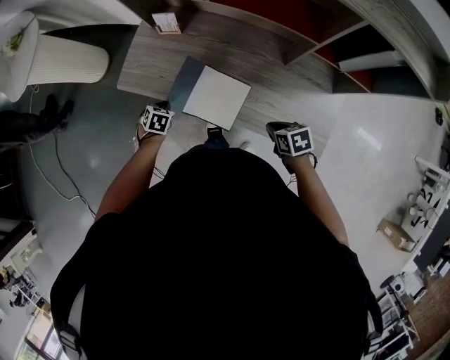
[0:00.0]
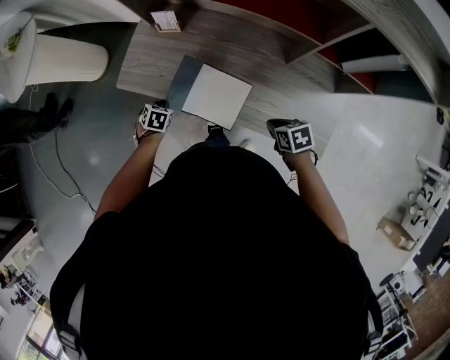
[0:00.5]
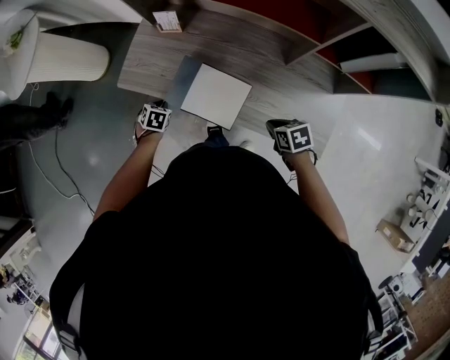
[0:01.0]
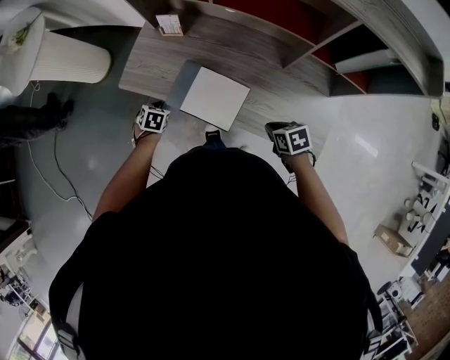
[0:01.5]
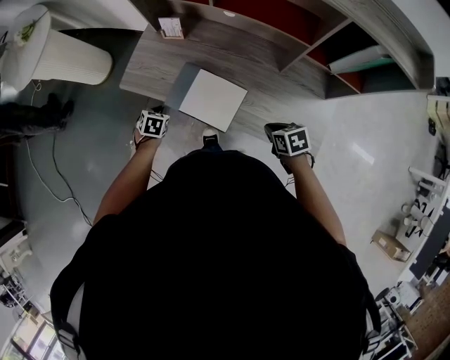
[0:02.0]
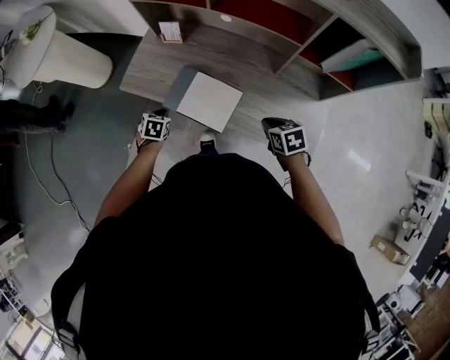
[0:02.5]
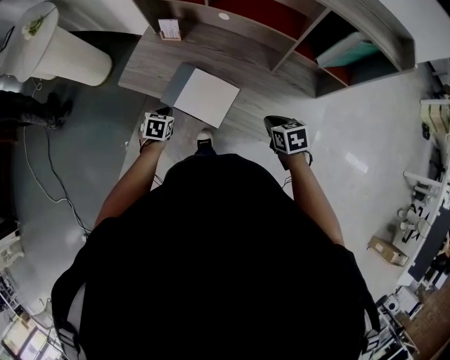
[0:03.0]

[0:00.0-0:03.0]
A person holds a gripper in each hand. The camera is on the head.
0:00.0 to 0:01.5: The grippers move only a little.
0:01.5 to 0:03.0: The right gripper heads upward, covering roughly 5 cm, while the left gripper shifts some 10 cm backward and upward.

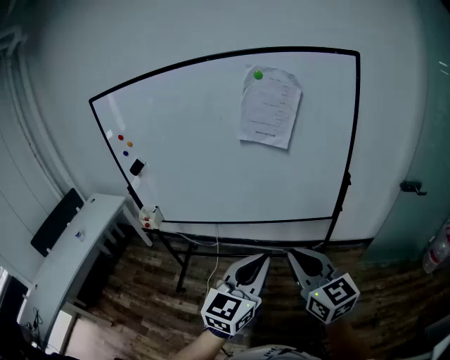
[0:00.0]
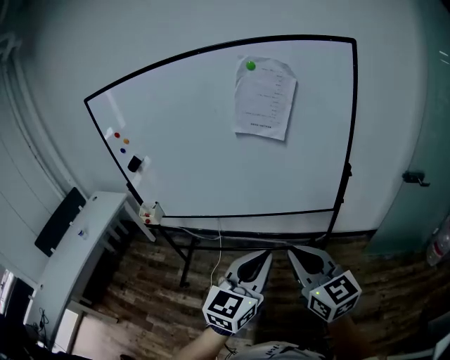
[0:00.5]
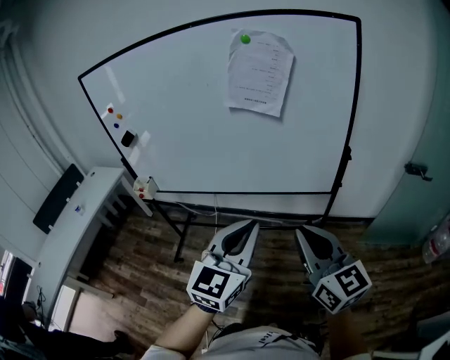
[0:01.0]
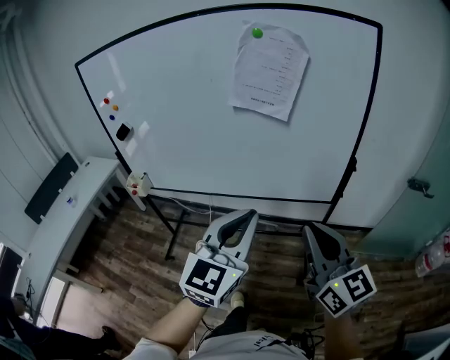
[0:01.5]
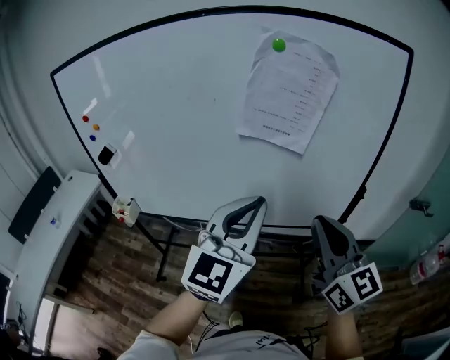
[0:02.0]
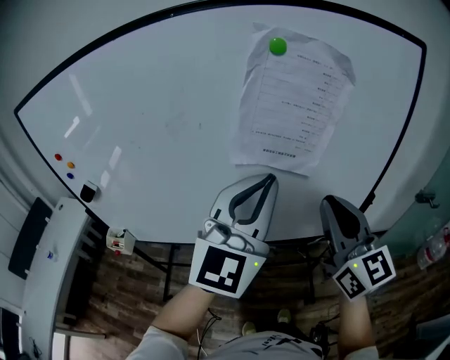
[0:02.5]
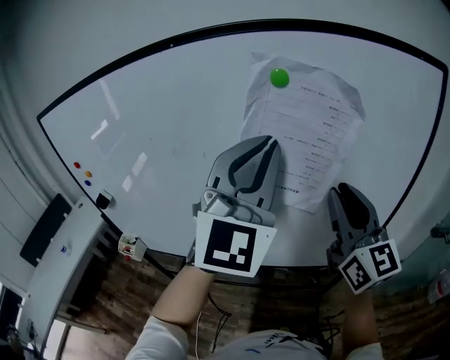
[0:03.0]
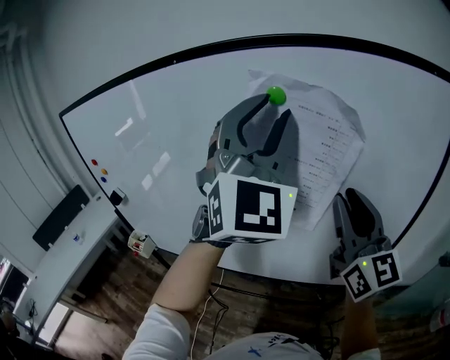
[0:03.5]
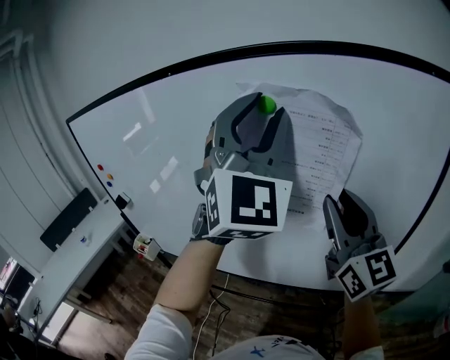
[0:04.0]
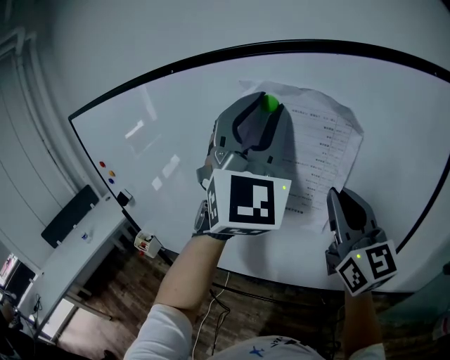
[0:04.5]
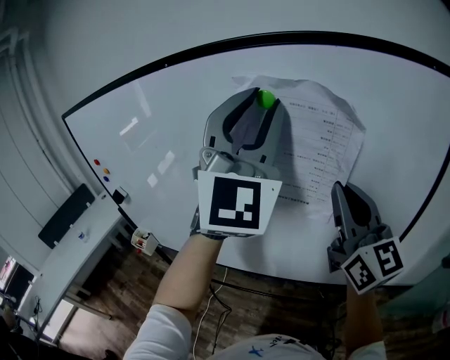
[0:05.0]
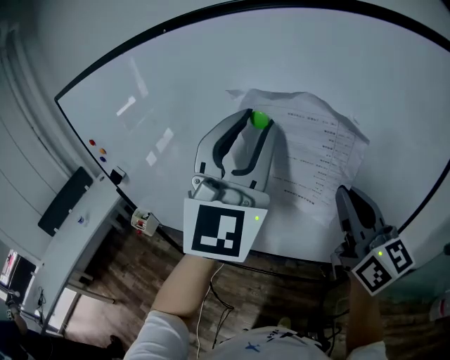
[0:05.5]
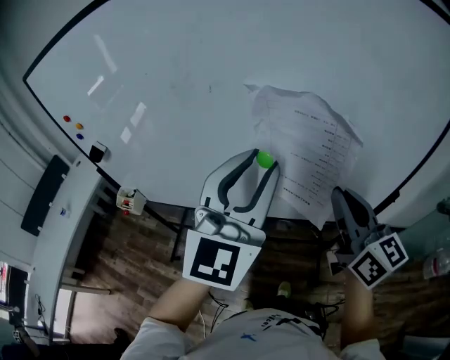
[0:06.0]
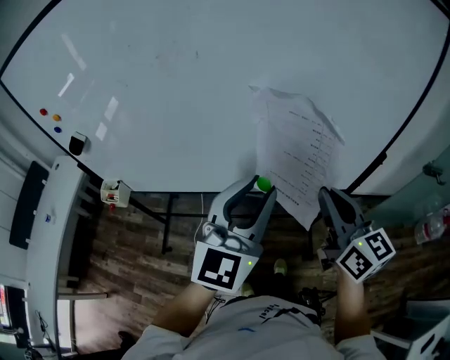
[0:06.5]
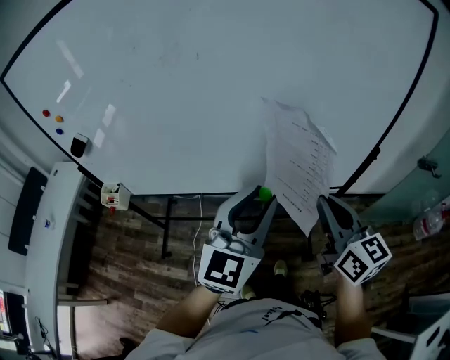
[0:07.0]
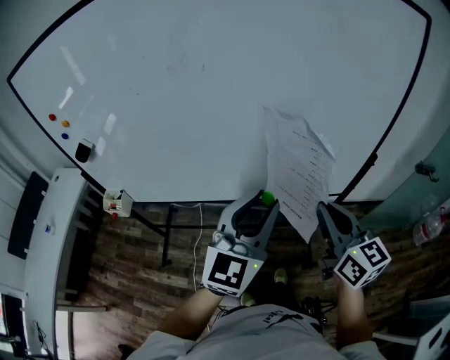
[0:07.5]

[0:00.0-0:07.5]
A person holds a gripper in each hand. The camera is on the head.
0:00.0 to 0:02.0: The left gripper is displaced forward and upward by approximately 25 cm, while the right gripper goes roughly 20 cm forward.
0:02.0 to 0:04.0: The left gripper moves forward and upward, about 30 cm, twists about 40 degrees clockwise, seen from behind, and opens its fingers; the right gripper is displaced forward by about 25 cm, and opens up.
0:04.0 to 0:05.5: The left gripper travels downward by some 5 cm. The right gripper closes its fingers.
0:05.5 to 0:07.5: The left gripper moves downward and backward, roughly 30 cm, and swivels some 40 degrees, while the right gripper travels backward and downward by approximately 20 cm, and rotates about 20 degrees.

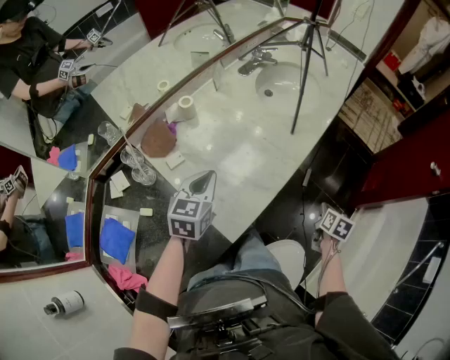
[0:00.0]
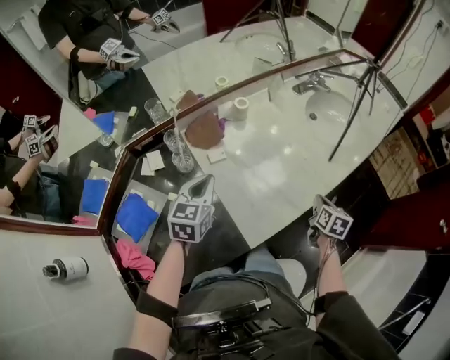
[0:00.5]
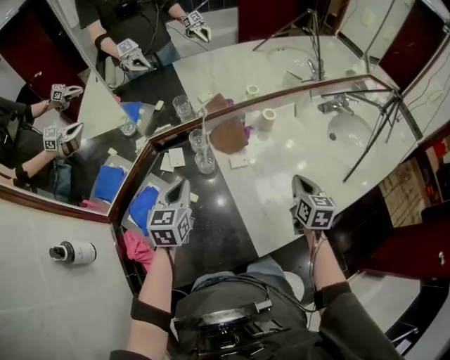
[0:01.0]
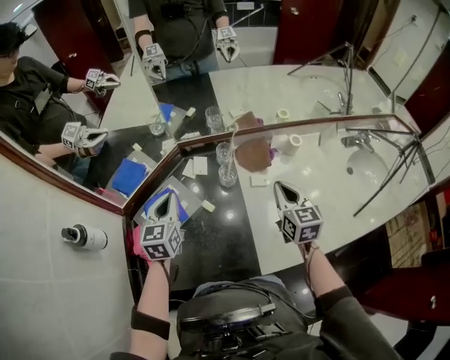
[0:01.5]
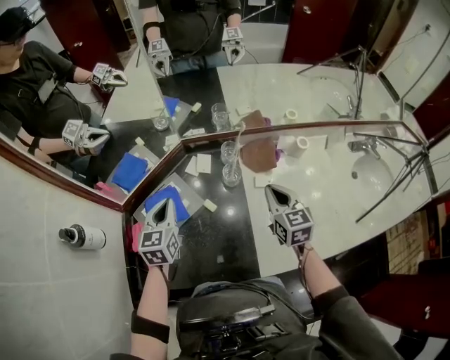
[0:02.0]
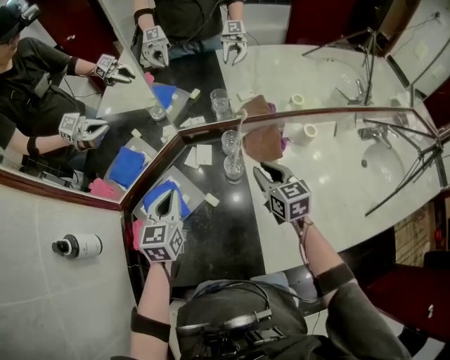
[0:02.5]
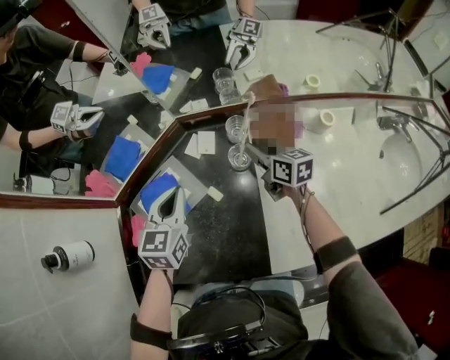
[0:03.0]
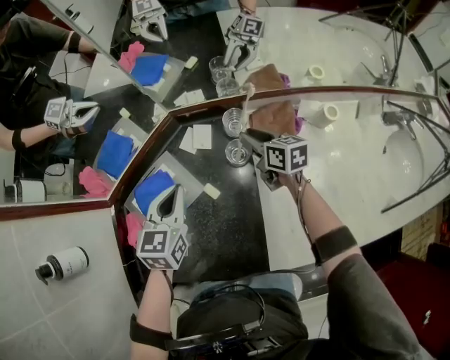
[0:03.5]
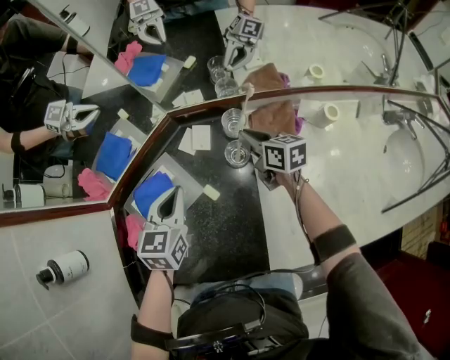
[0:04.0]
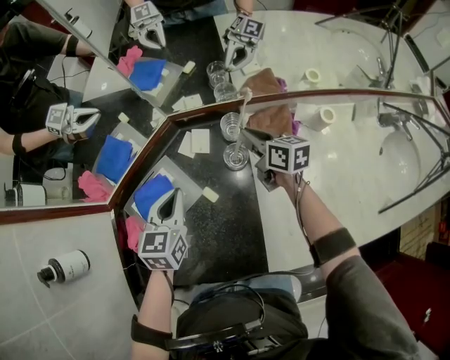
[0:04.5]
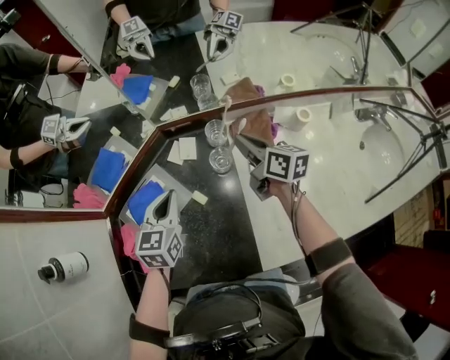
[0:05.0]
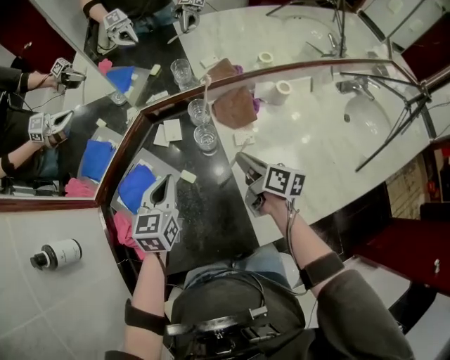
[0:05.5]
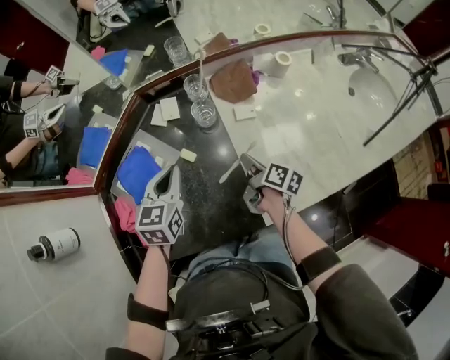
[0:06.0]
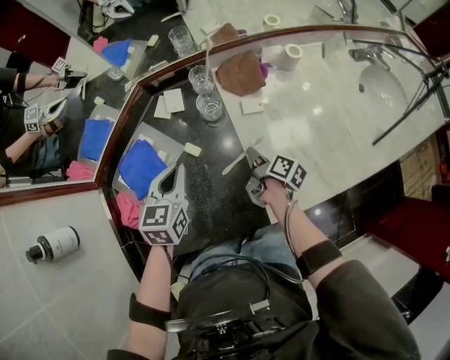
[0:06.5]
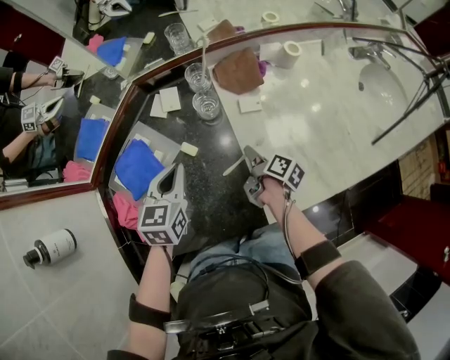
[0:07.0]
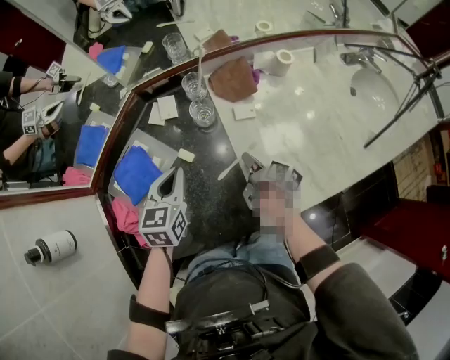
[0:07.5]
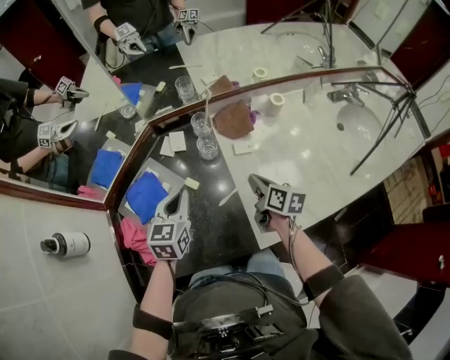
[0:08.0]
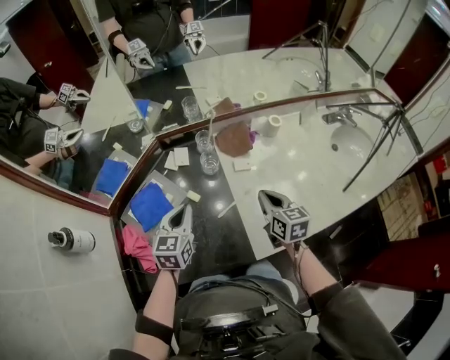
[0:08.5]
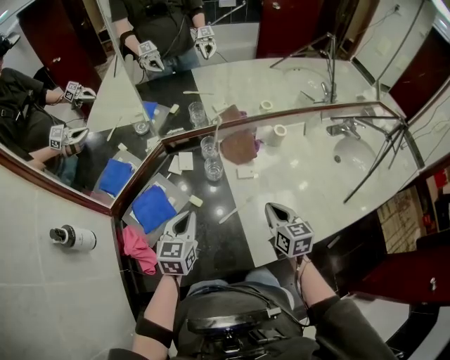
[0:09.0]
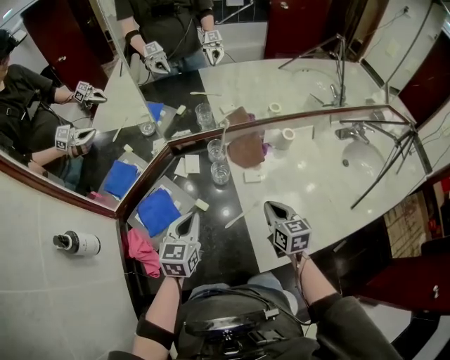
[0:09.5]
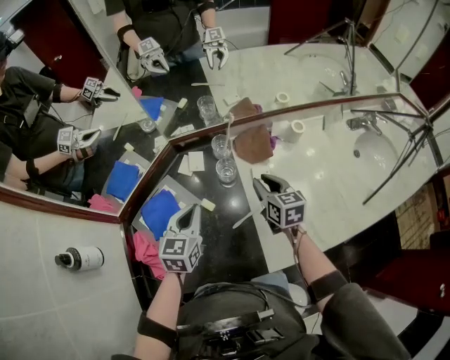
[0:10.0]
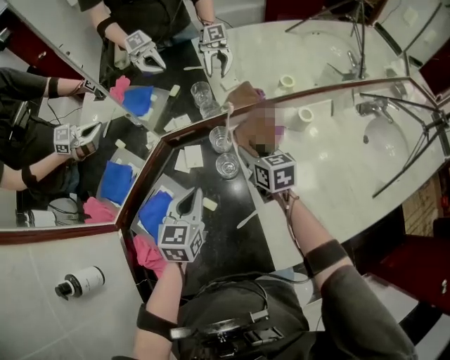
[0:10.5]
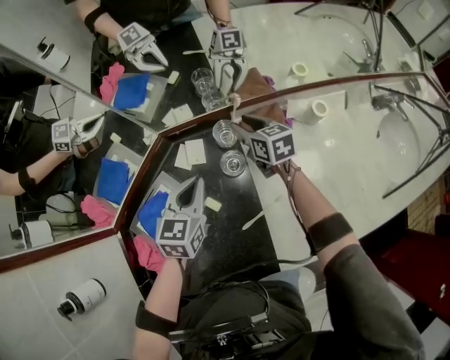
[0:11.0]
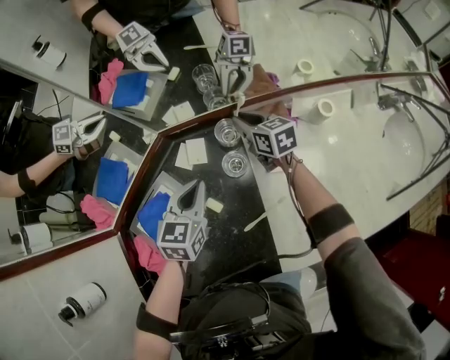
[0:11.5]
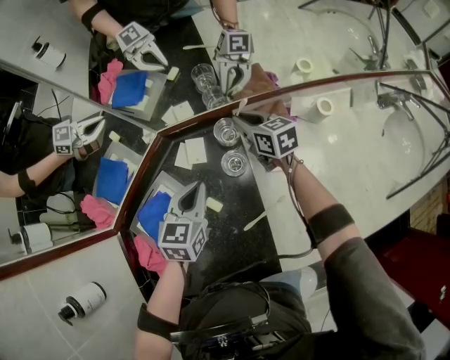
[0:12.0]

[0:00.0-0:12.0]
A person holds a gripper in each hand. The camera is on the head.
0:00.0 to 0:02.0: The left gripper changes place by about 40 cm, and swivels roughly 60 degrees. Meanwhile the right gripper ends up approximately 60 cm from where it was, and turns by approximately 80 degrees.
0:02.0 to 0:04.0: The right gripper travels forward and downward by roughly 25 cm, rotates roughly 30 degrees, and opens, then closes once more, while the left gripper goes some 10 cm to the right and downward.
0:04.0 to 0:06.0: The right gripper travels backward by roughly 25 cm, and rotates around the line of its fingers by approximately 40 degrees, clockwise from behind. Meanwhile the left gripper travels backward by about 10 cm.
0:06.0 to 0:08.0: The right gripper heads upward, covering about 10 cm, rotates about 20 degrees, and opens, then closes once more.
0:08.0 to 0:10.0: The right gripper travels forward by approximately 10 cm, rotates roughly 30 degrees, and opens.
0:10.0 to 0:12.0: The left gripper goes about 10 cm forward and downward; the right gripper shifts some 20 cm forward.

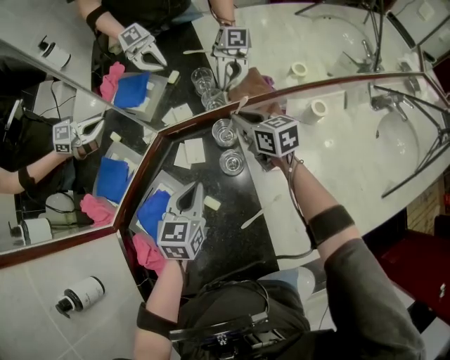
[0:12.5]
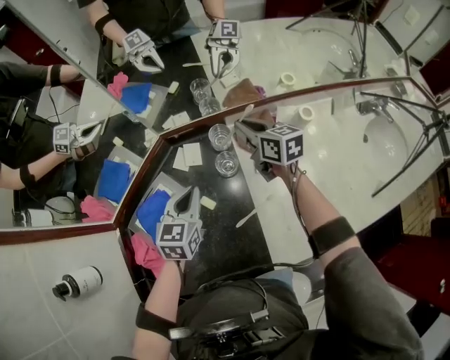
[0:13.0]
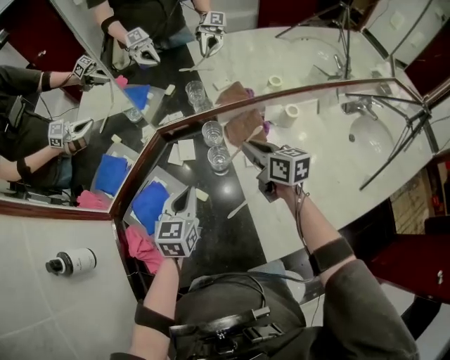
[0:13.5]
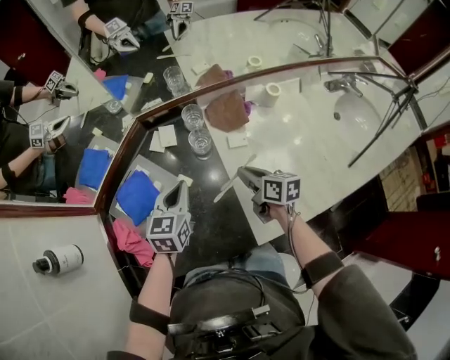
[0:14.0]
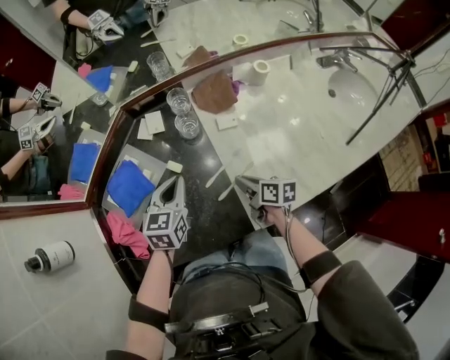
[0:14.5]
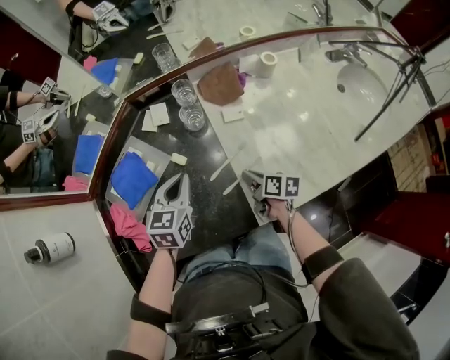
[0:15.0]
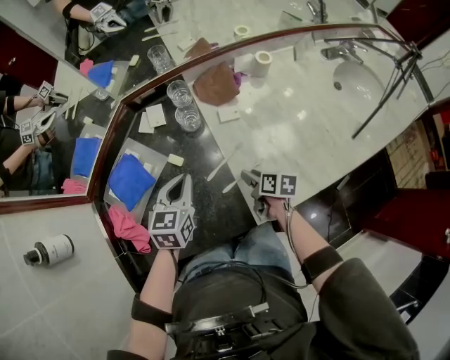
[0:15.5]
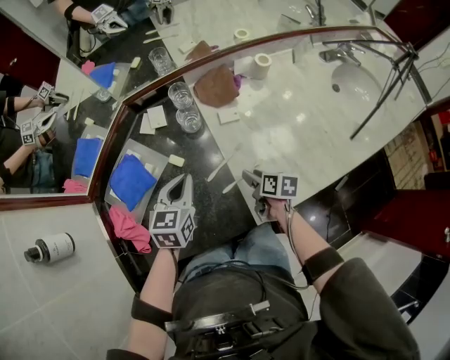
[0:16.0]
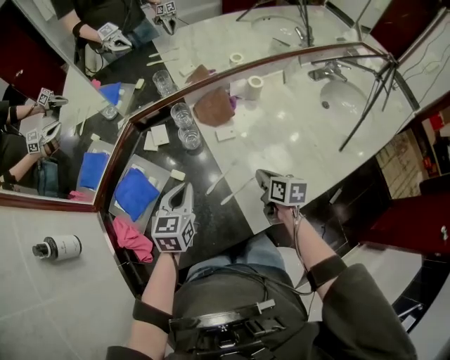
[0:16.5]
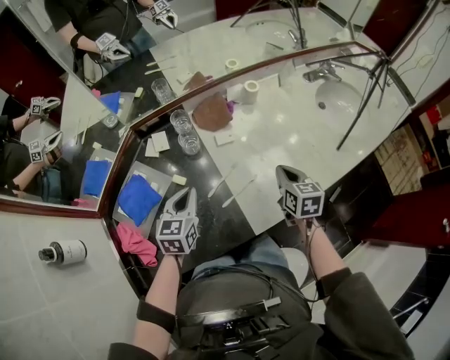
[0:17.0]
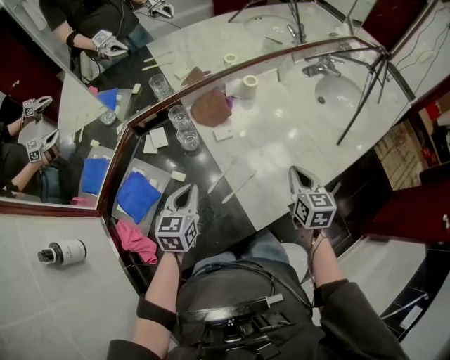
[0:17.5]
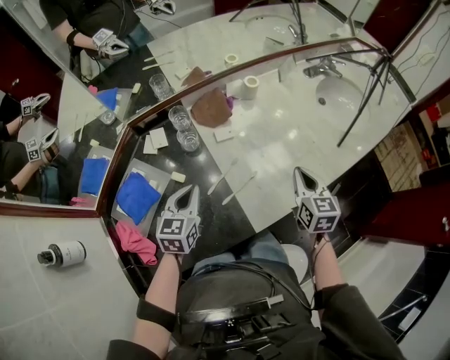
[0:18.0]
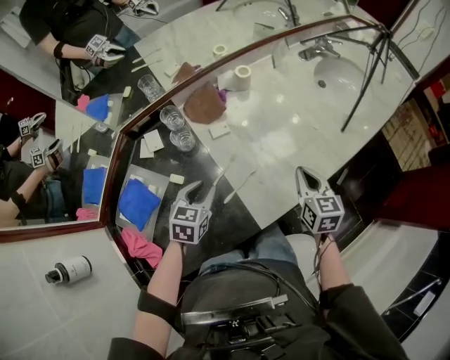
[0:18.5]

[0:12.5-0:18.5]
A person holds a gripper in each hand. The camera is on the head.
0:12.5 to 0:14.5: The left gripper travels backward by some 15 cm, while the right gripper goes approximately 35 cm backward, and rotates roughly 40 degrees.
0:14.5 to 0:16.5: The right gripper moves to the right, roughly 10 cm, and opens, then closes again.
0:16.5 to 0:18.5: The left gripper moves to the right and downward, roughly 10 cm, swivels some 20 degrees, and opens up. Meanwhile the right gripper goes approximately 15 cm to the right and upward, and turns by approximately 30 degrees.
